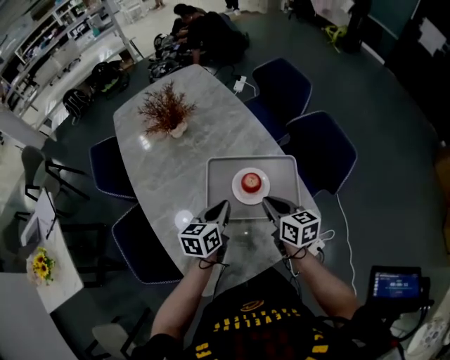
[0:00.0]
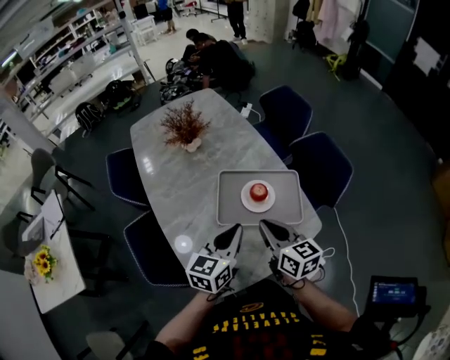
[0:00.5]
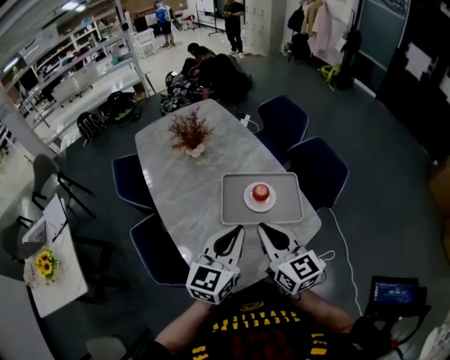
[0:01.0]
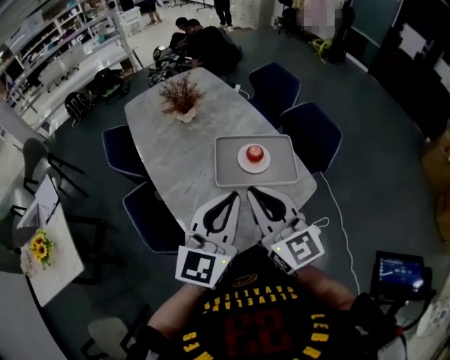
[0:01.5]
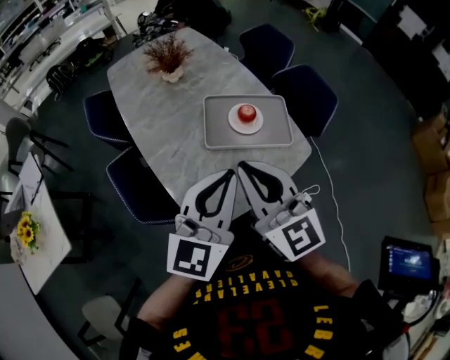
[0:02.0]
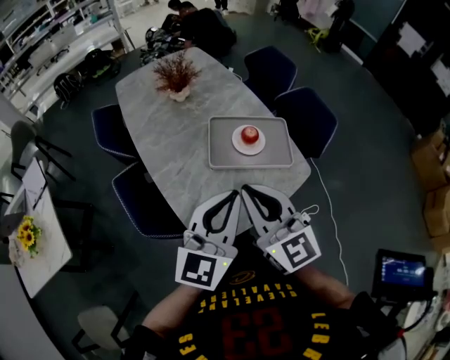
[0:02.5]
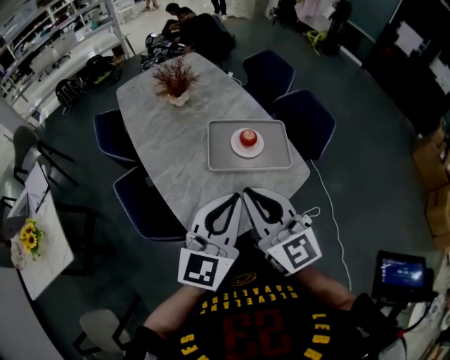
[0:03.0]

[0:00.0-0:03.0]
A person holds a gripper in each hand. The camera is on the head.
0:00.0 to 0:01.5: The right gripper goes roughly 35 cm upward, backward and to the left, and changes its angle by about 40 degrees; the left gripper travels upward and backward by roughly 35 cm, and changes its angle by approximately 40 degrees.
0:01.5 to 0:03.0: The left gripper changes place by about 5 cm. Meanwhile the right gripper changes place by some 5 cm.

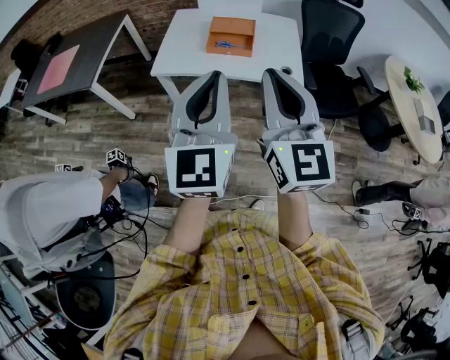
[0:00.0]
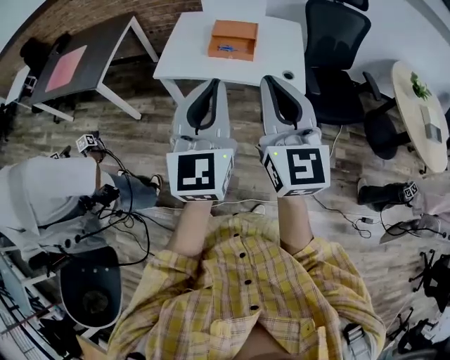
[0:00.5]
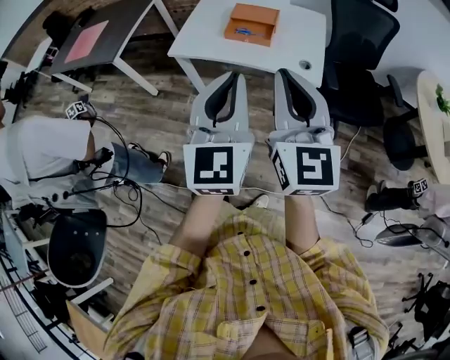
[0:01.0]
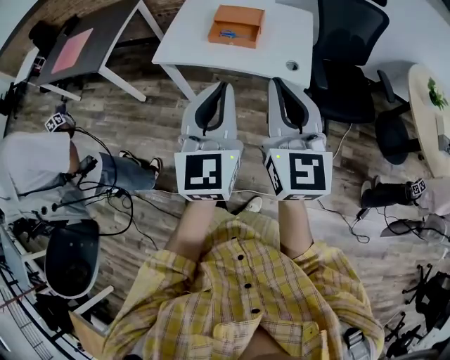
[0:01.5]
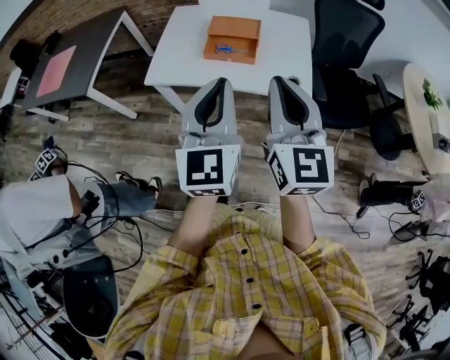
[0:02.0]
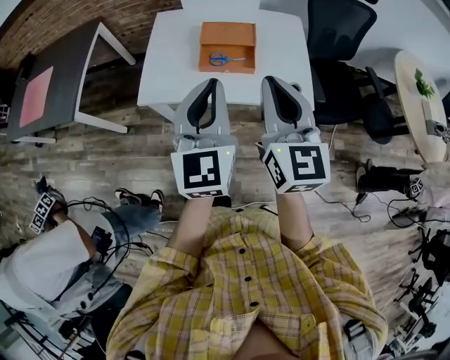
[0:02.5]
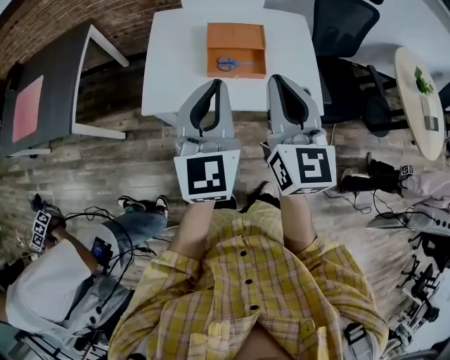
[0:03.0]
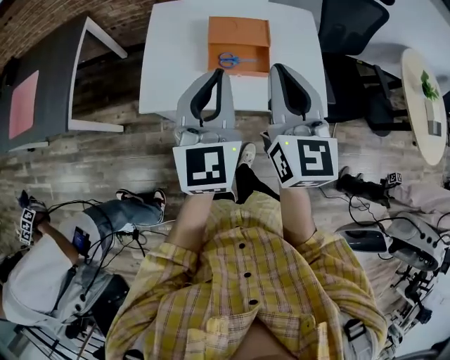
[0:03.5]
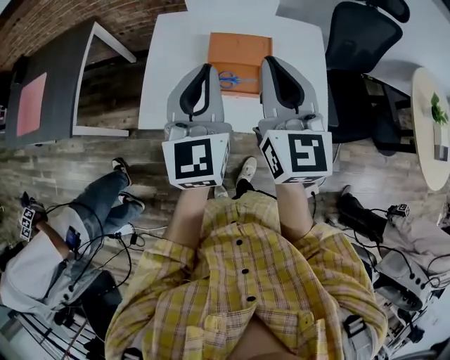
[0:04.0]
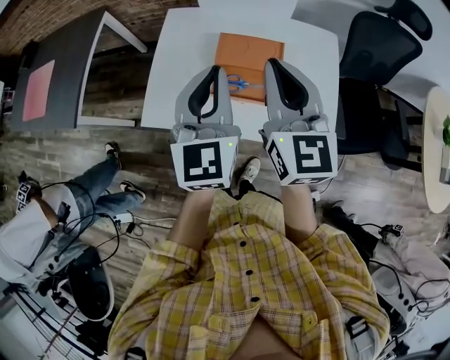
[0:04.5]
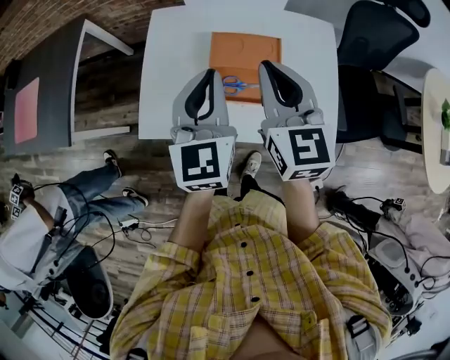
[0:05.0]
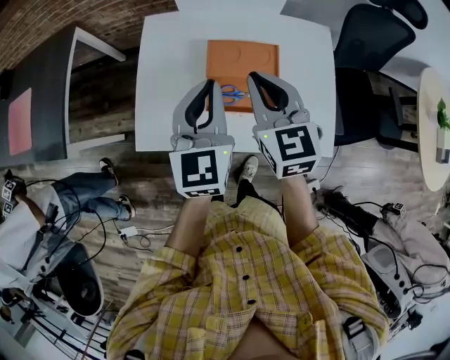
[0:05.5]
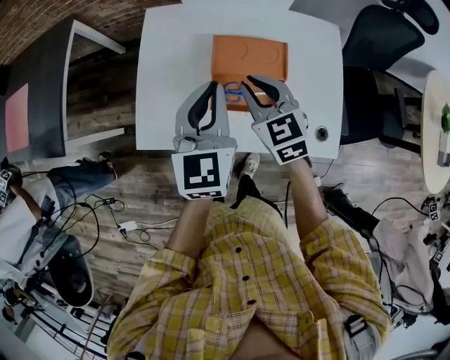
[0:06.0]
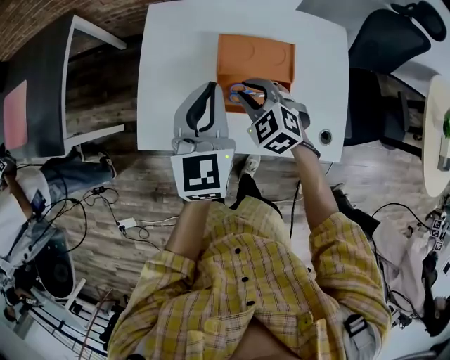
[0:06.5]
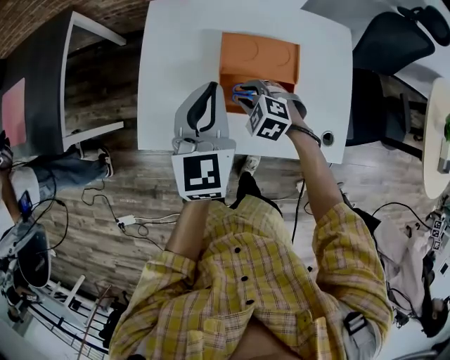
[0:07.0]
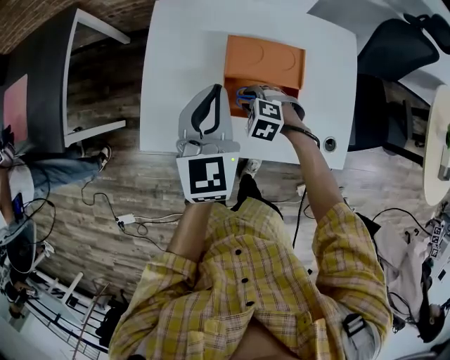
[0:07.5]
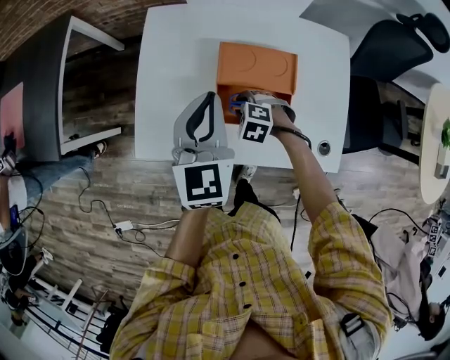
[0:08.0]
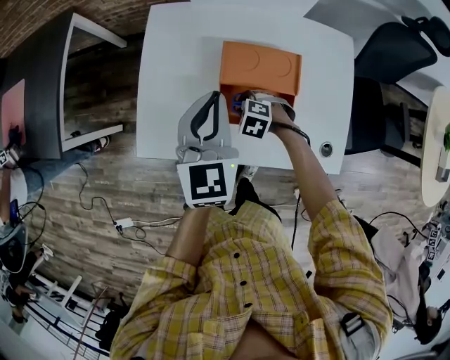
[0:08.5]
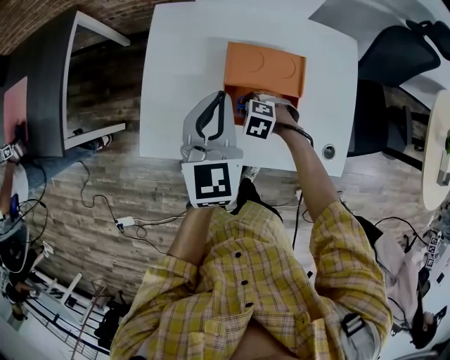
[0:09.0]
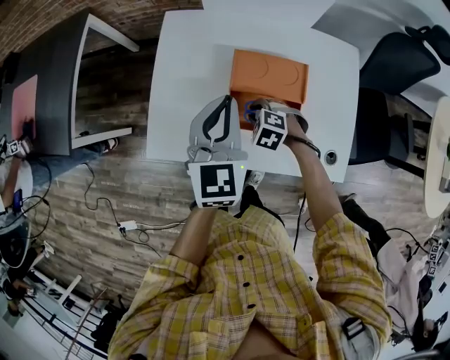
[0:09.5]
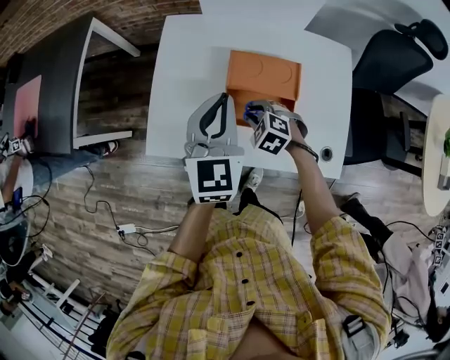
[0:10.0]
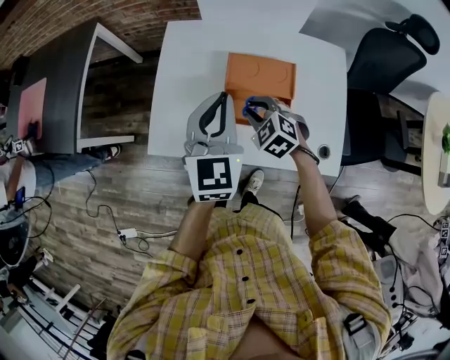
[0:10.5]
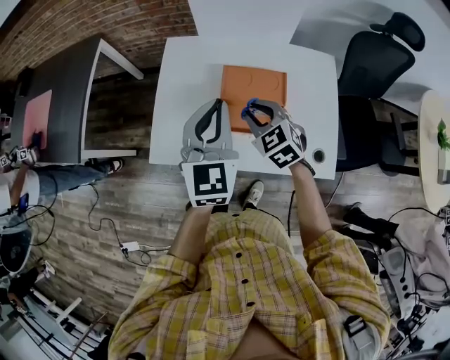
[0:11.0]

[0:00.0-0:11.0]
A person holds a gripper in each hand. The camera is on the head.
0:00.0 to 0:02.0: The right gripper moves forward, to the right and downward, approximately 15 cm. Meanwhile the left gripper shifts roughly 15 cm forward and downward.
0:02.0 to 0:03.5: Both grippers travel together forward and to the left, approximately 25 cm.
0:03.5 to 0:05.5: The right gripper shifts some 25 cm forward and downward, and turns by approximately 20 degrees. The left gripper goes some 20 cm forward.
0:05.5 to 0:07.5: The right gripper moves downward, about 30 cm, angles its fingers downward, by about 50 degrees, and opens its fingers. The left gripper goes some 5 cm downward.
0:07.5 to 0:09.0: The grippers make only small movements.
0:09.0 to 0:11.0: The right gripper shifts approximately 25 cm upward, and tips its fingers upward by some 40 degrees, while the left gripper is displaced upward by some 10 cm.

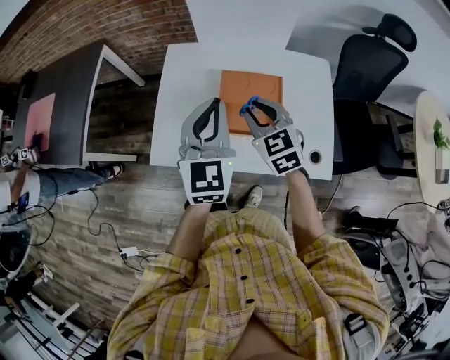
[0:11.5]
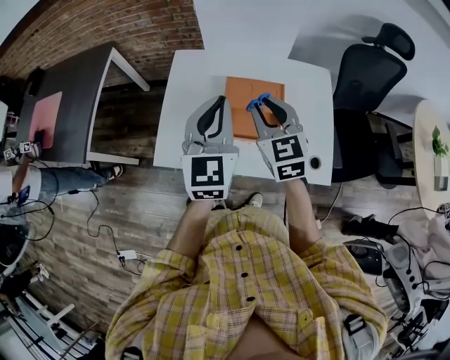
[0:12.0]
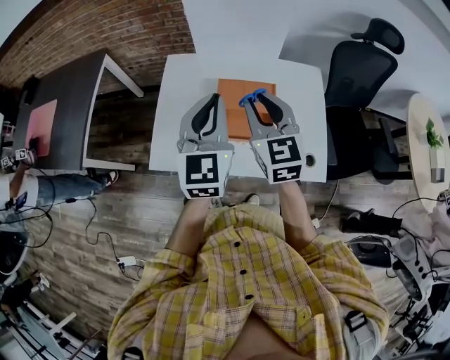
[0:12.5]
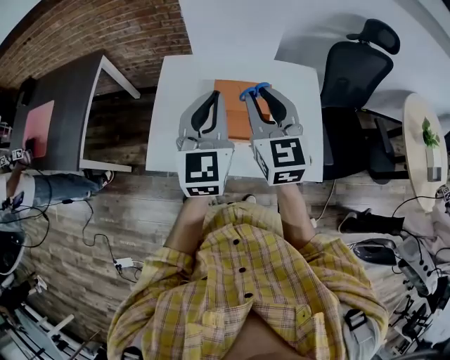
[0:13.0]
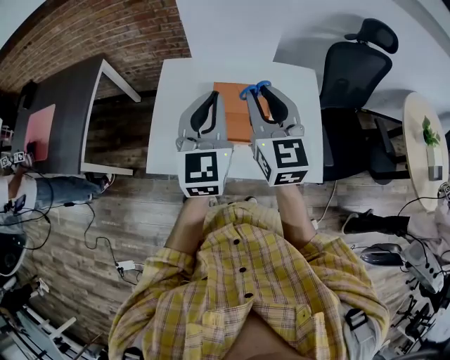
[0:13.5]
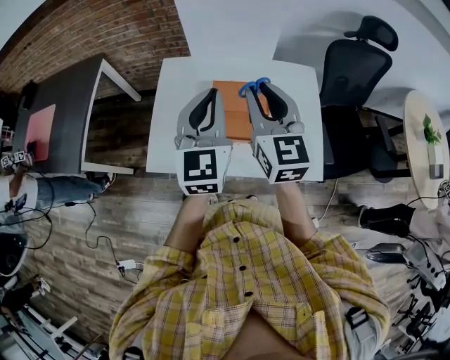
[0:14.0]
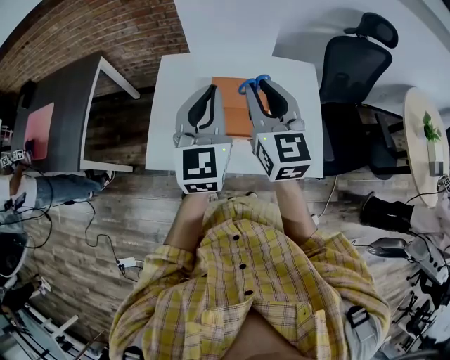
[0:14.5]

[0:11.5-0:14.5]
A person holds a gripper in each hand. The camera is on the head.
0:11.5 to 0:13.0: The right gripper is displaced upward by roughly 15 cm, and turns by roughly 30 degrees.
0:13.0 to 0:14.5: The grippers move only a little.

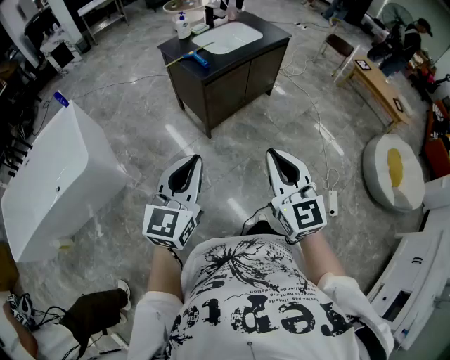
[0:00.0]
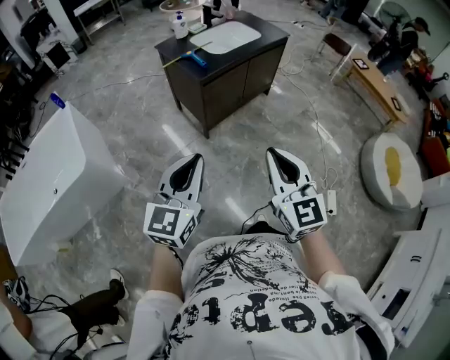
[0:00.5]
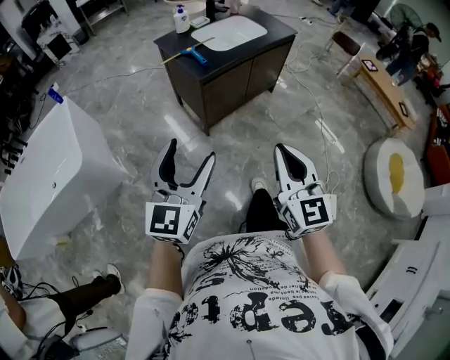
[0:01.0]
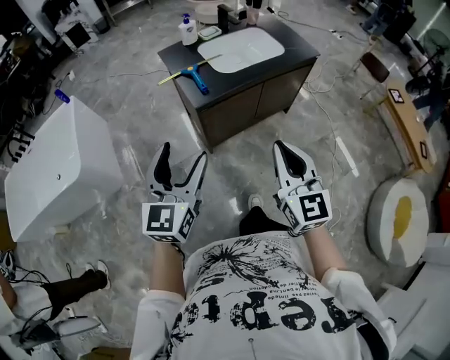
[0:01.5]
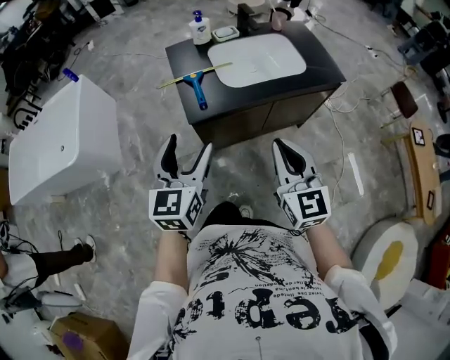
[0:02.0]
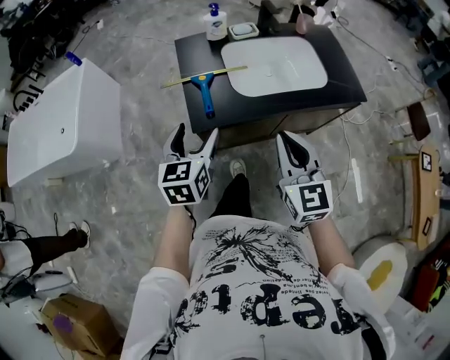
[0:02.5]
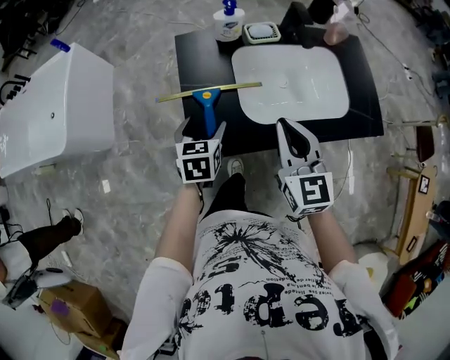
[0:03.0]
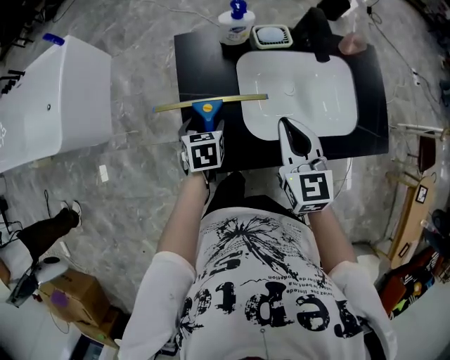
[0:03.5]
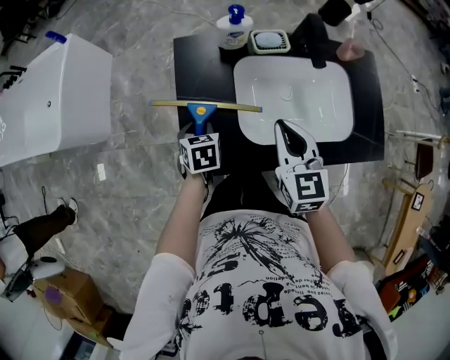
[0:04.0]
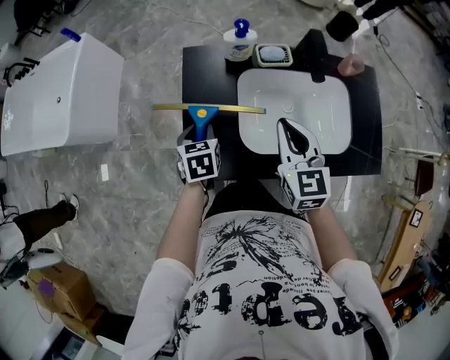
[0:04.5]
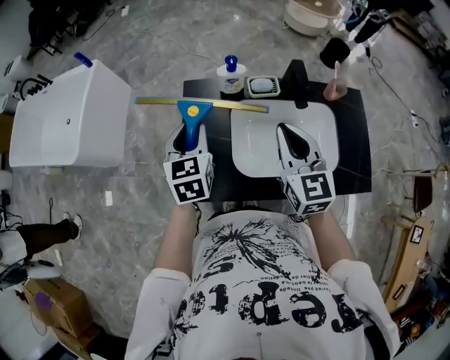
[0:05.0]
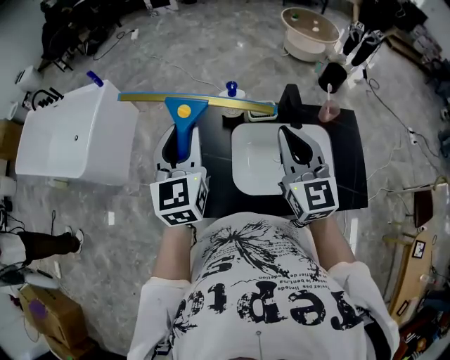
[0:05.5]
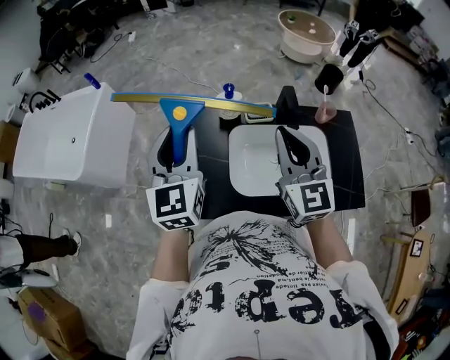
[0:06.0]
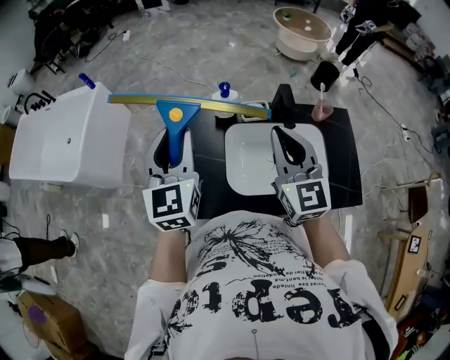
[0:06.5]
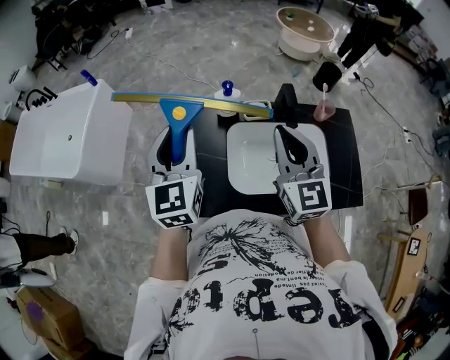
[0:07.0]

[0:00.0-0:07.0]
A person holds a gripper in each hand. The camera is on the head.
0:00.0 to 0:02.0: The two grippers travel together, some 60 cm. The left gripper rotates some 30 degrees, and opens; the right gripper rotates roughly 20 degrees.
0:02.0 to 0:03.5: Both grippers are carried forward, roughly 40 cm. The left gripper goes about 30 cm downward, and tips its fingers downward by roughly 40 degrees.
0:03.5 to 0:05.0: The right gripper moves upward and to the right, about 10 cm, while the left gripper is displaced upward by about 25 cm, changes its angle by approximately 30 degrees, and closes up.
0:05.0 to 0:07.0: The left gripper shifts approximately 15 cm upward, and turns by about 20 degrees, while the right gripper is displaced upward by roughly 10 cm.

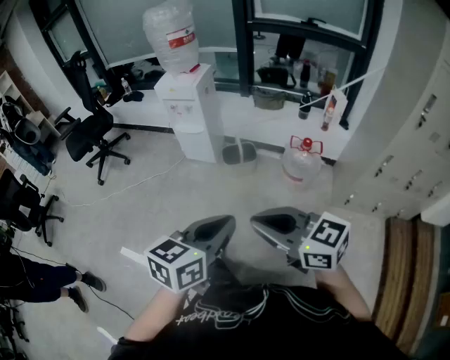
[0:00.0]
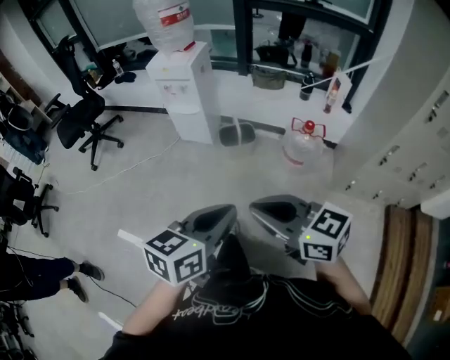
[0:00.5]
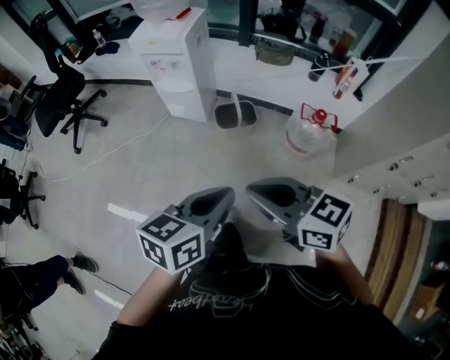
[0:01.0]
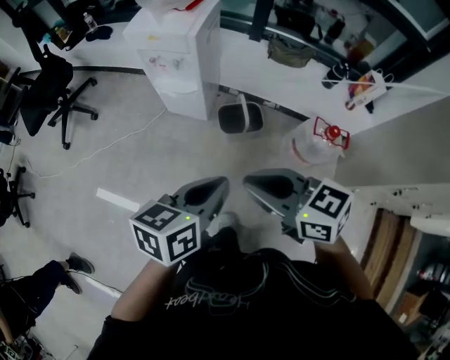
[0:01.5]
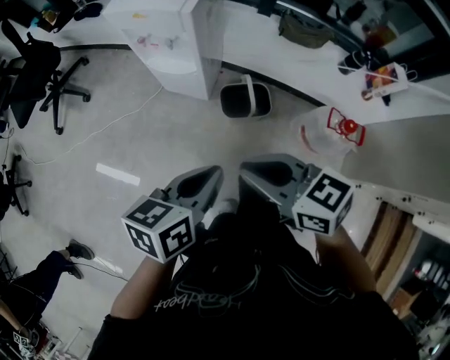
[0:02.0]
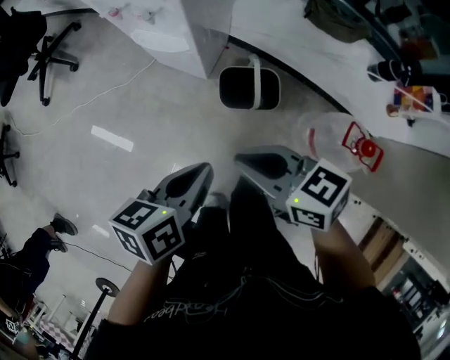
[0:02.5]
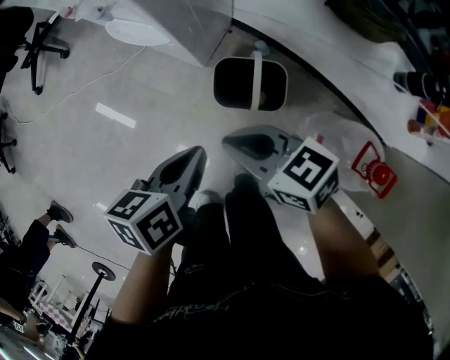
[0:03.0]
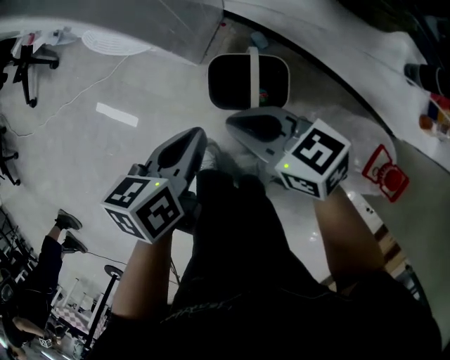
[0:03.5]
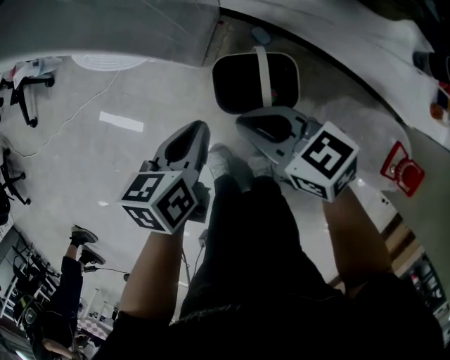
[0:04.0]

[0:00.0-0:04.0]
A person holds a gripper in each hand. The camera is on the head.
0:00.0 to 0:02.0: Both grippers are carried forward, some 40 cm. The right gripper rotates approximately 20 degrees. The left gripper goes roughly 20 cm downward, and changes its angle by roughly 20 degrees.
0:02.0 to 0:04.0: The grippers both shift downward and forward by approximately 40 cm. The left gripper rotates some 20 degrees.
